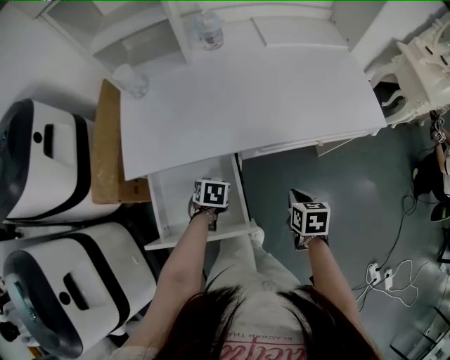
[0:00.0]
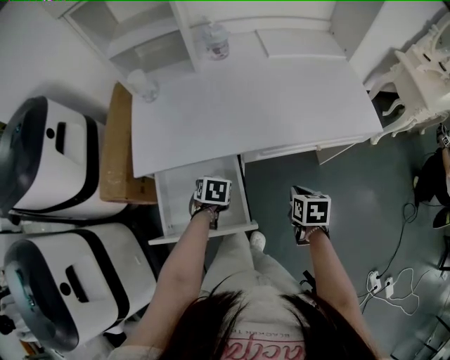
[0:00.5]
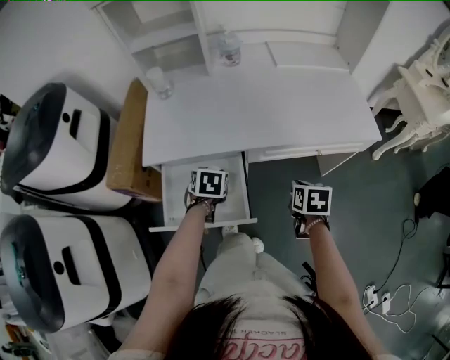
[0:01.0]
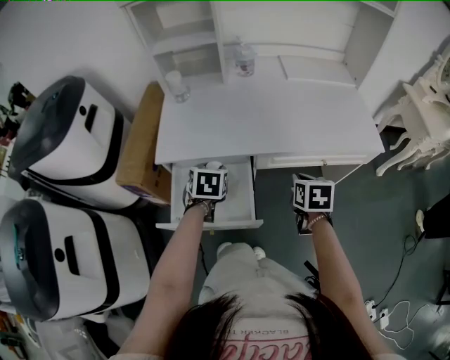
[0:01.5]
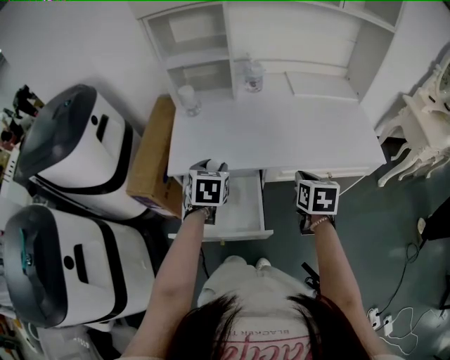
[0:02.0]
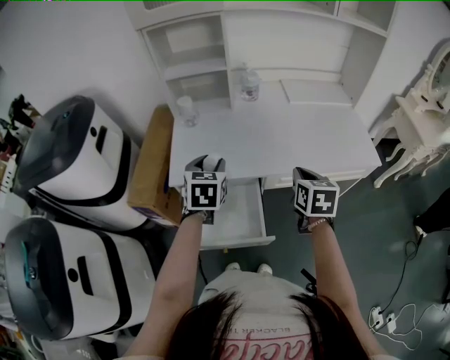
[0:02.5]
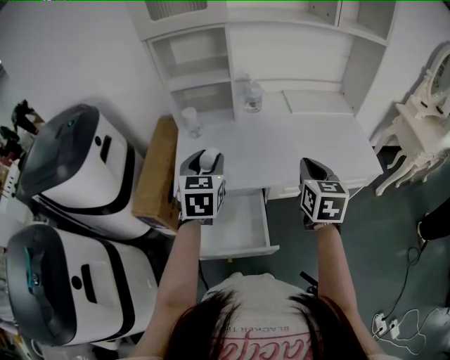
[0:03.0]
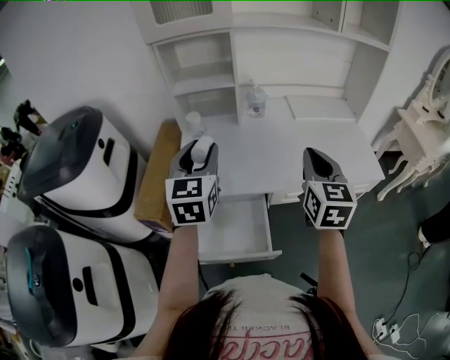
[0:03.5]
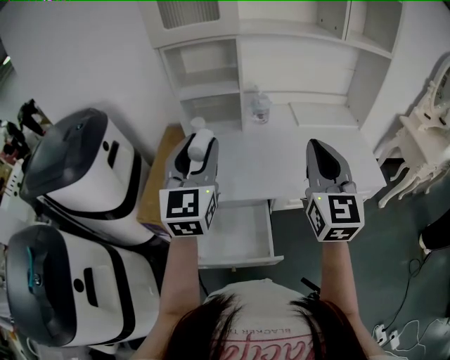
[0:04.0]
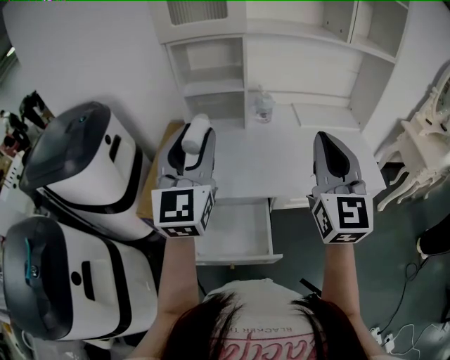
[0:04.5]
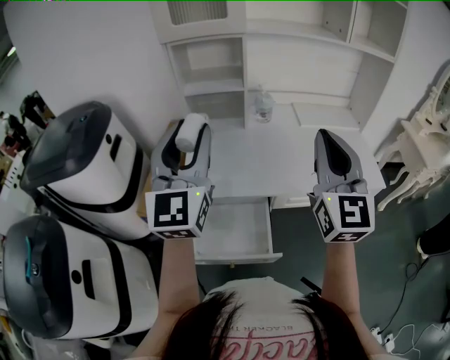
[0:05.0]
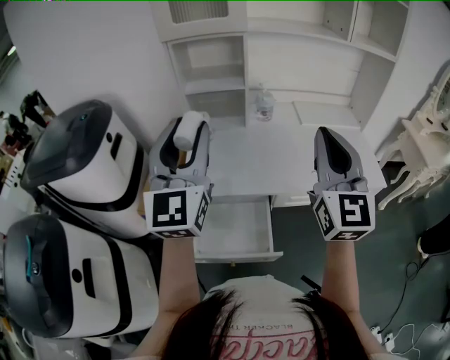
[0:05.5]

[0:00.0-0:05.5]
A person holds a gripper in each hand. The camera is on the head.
0:00.0 to 0:02.0: Both grippers travel together upward, approximately 20 cm. The left gripper tips its fingers upward by about 30 degrees.
0:02.0 to 0:03.5: The two grippers go roughly 20 cm upward. The right gripper angles its fingers upward, by about 30 degrees, while the left gripper tilts its fingers some 30 degrees upward.
0:03.5 to 0:05.5: The right gripper shifts roughly 10 cm upward, and changes its angle by about 30 degrees. Meanwhile the left gripper heads upward and backward, covering roughly 15 cm, and swivels some 30 degrees.

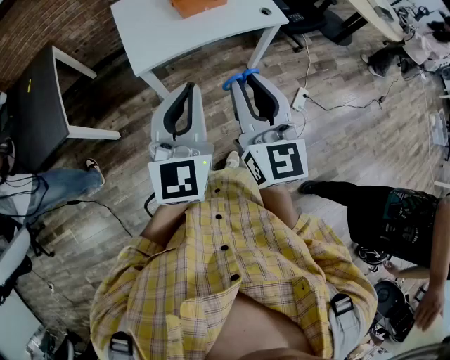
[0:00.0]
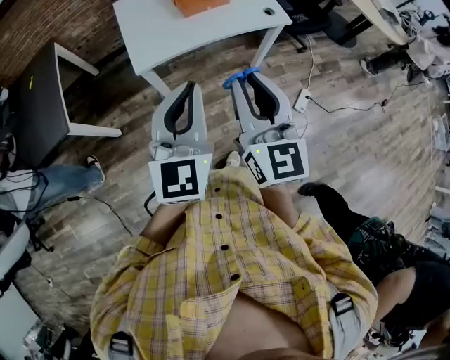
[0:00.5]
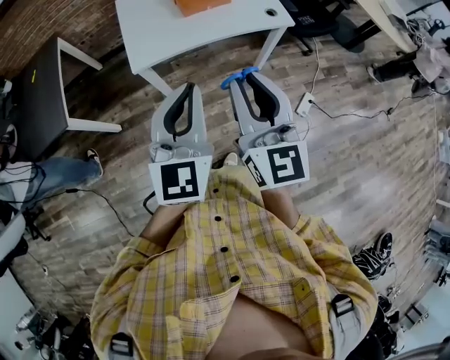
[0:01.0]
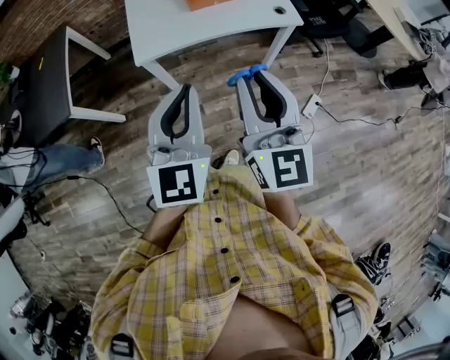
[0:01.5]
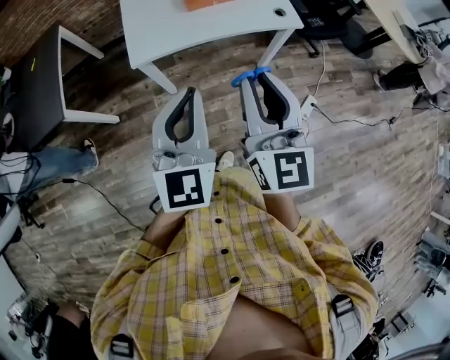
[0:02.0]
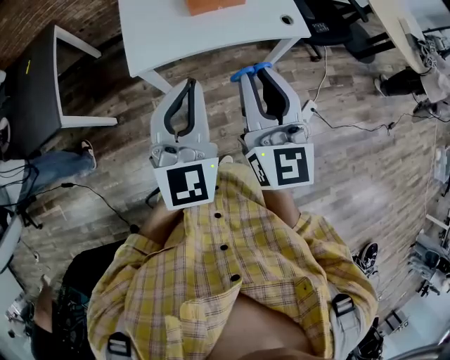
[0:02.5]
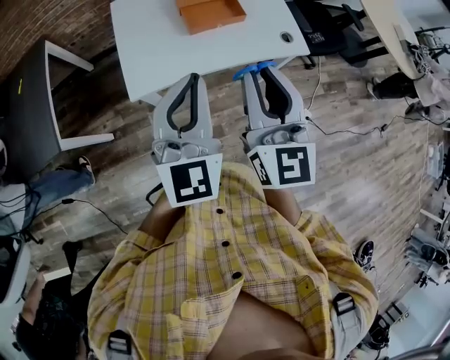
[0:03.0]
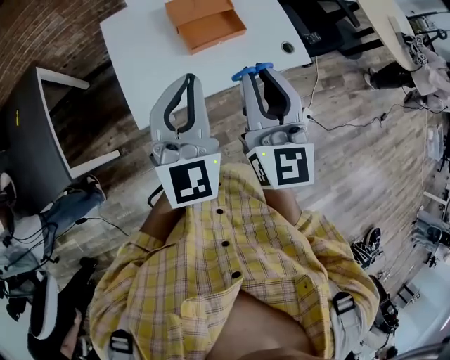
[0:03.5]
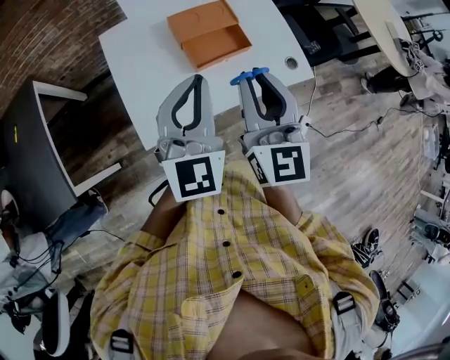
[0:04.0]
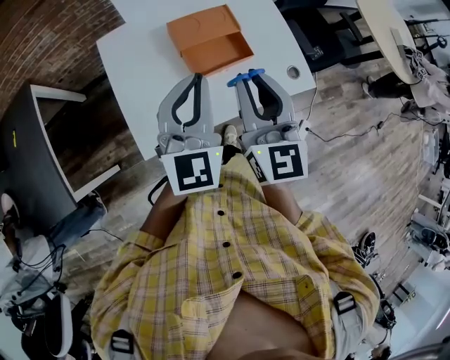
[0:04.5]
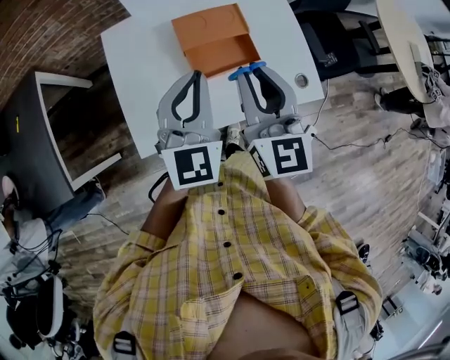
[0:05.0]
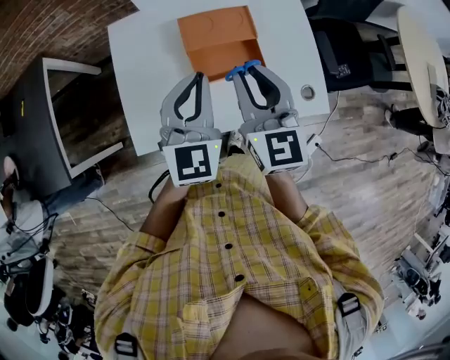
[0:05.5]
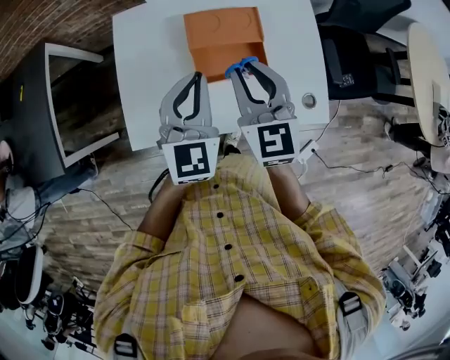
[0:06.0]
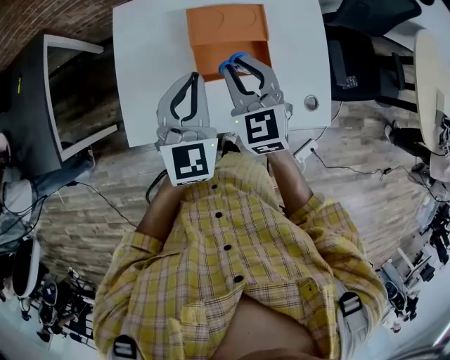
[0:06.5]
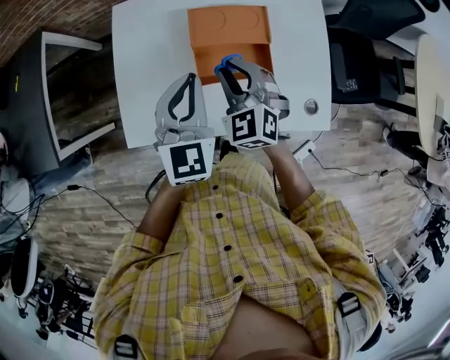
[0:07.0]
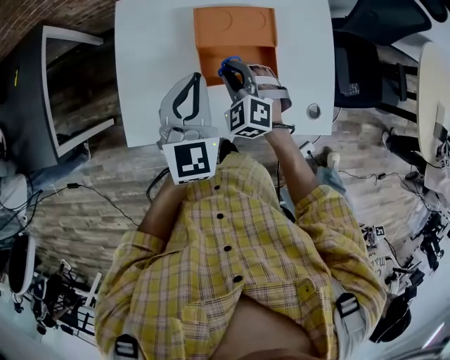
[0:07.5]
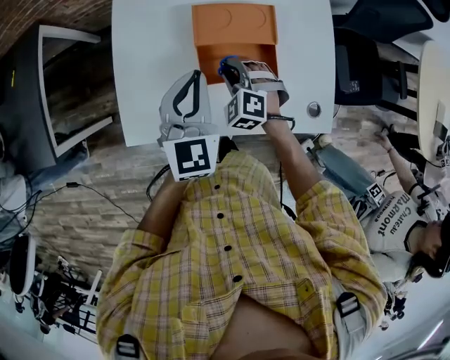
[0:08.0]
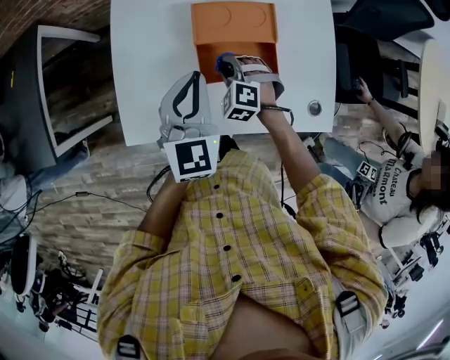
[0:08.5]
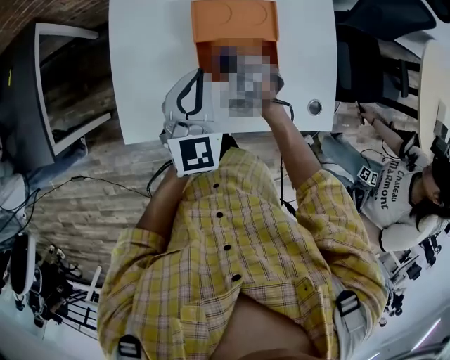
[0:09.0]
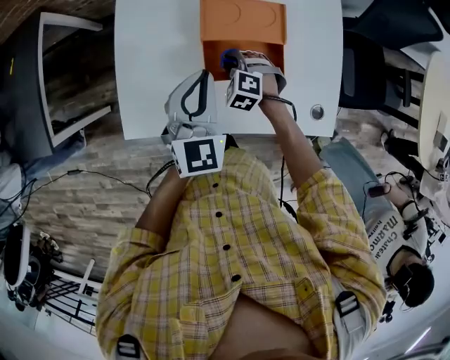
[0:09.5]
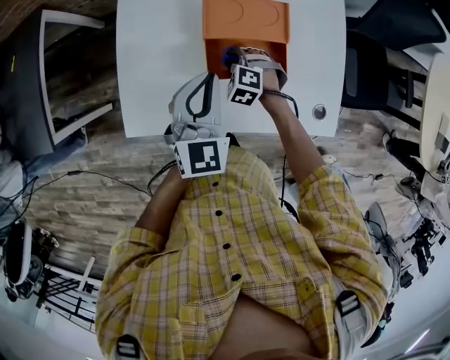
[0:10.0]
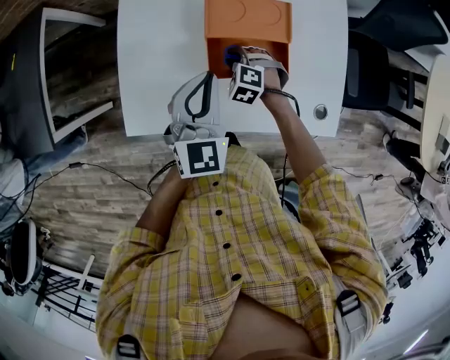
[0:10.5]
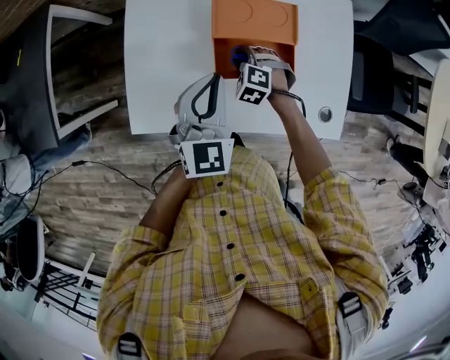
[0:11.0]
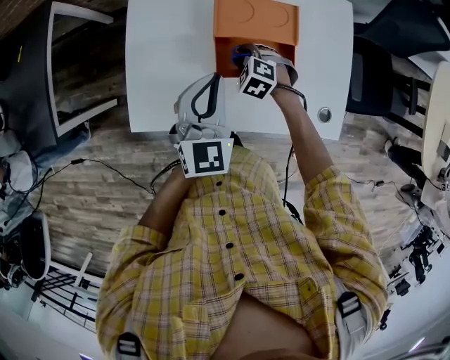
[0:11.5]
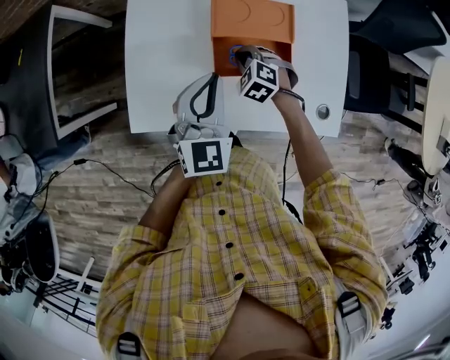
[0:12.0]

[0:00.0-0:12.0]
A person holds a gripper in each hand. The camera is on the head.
0:00.0 to 0:02.0: The two grippers go roughly 5 cm to the right.
0:02.0 to 0:04.0: The two grippers go approximately 35 cm forward.
0:04.0 to 0:06.0: The right gripper is displaced forward and downward by some 20 cm, and changes its angle by approximately 30 degrees; the left gripper heads forward, downward and to the right, covering some 20 cm.
0:06.0 to 0:08.0: The left gripper shifts about 5 cm downward. The right gripper is displaced downward by some 25 cm, and angles its fingers downward, by about 40 degrees.
0:08.0 to 0:10.0: The right gripper heads downward, covering roughly 10 cm.
0:10.0 to 0:12.0: There are only small adjustments of the grippers.

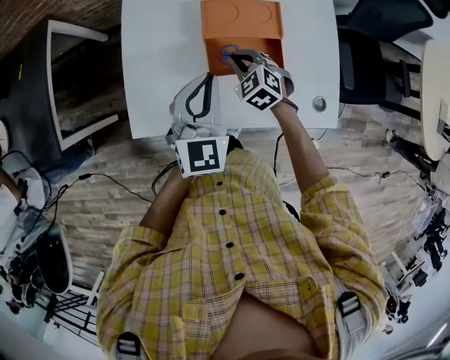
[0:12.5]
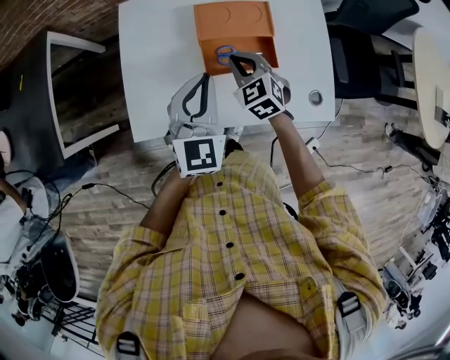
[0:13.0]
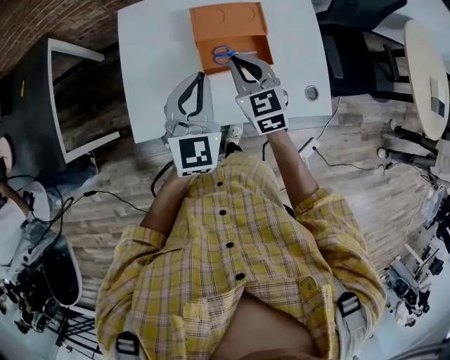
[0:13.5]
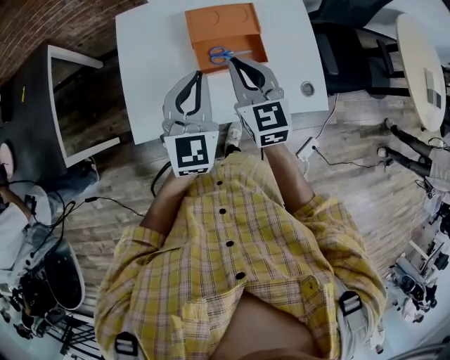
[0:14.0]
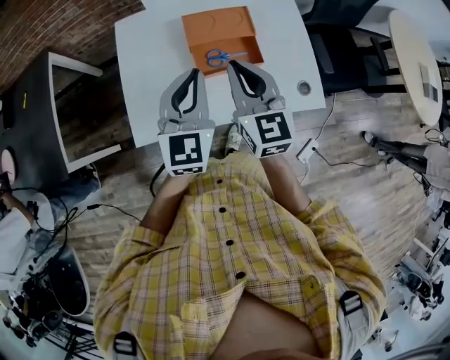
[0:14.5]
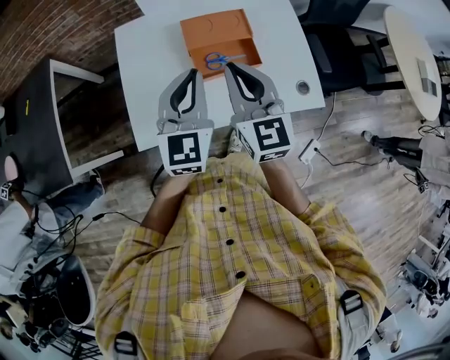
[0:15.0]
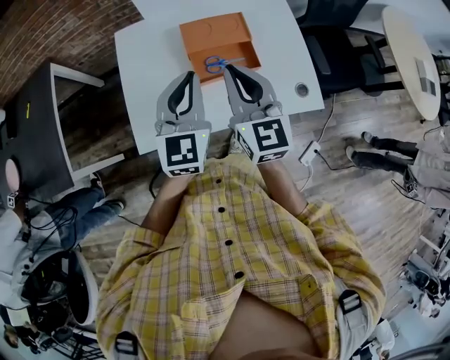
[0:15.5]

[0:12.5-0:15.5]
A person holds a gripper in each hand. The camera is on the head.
0:12.5 to 0:14.0: The left gripper changes place by approximately 5 cm, while the right gripper moves upward and backward, approximately 20 cm, and points its fingers some 30 degrees further upward.
0:14.0 to 0:15.5: The right gripper heads upward, covering roughly 5 cm.

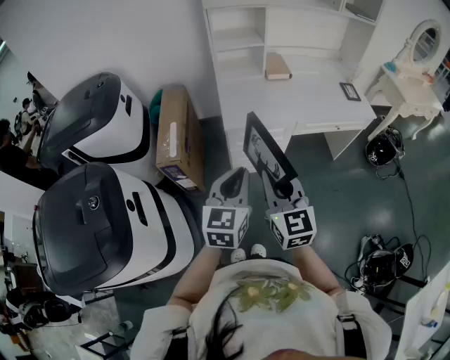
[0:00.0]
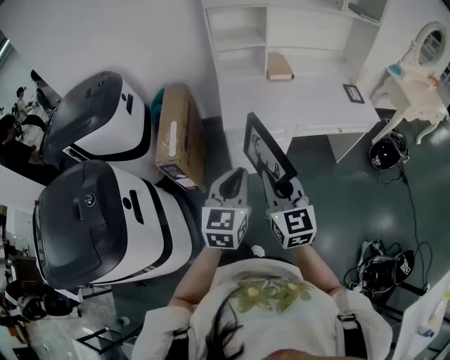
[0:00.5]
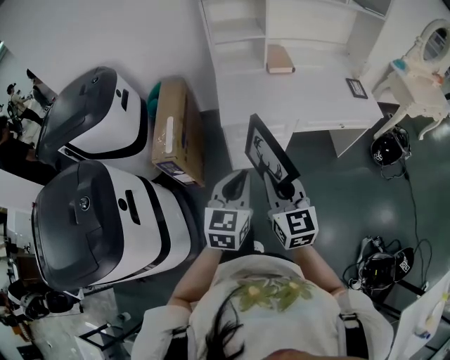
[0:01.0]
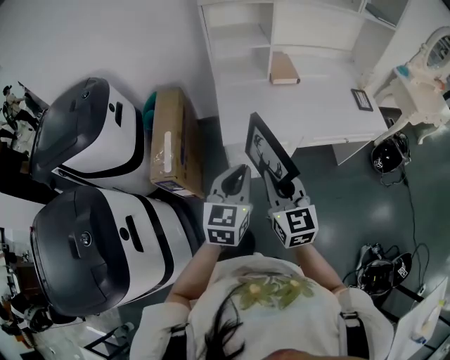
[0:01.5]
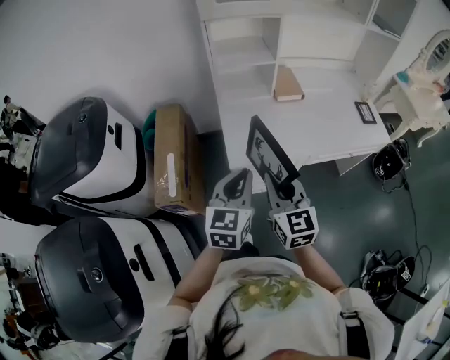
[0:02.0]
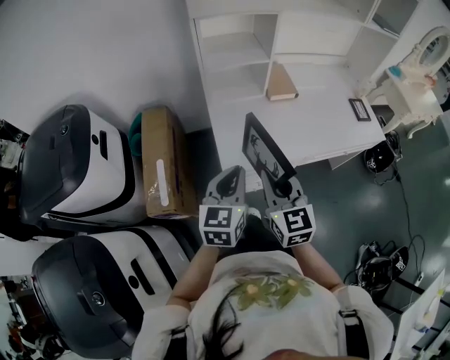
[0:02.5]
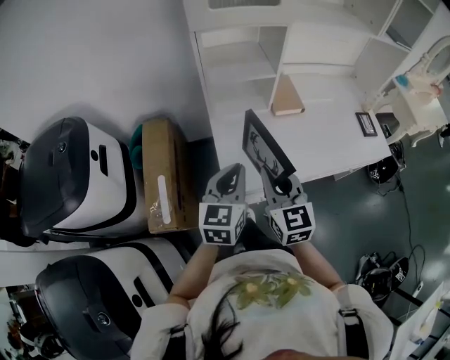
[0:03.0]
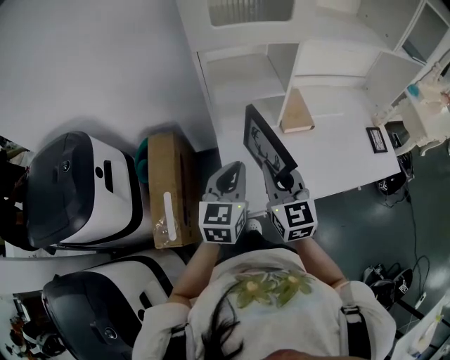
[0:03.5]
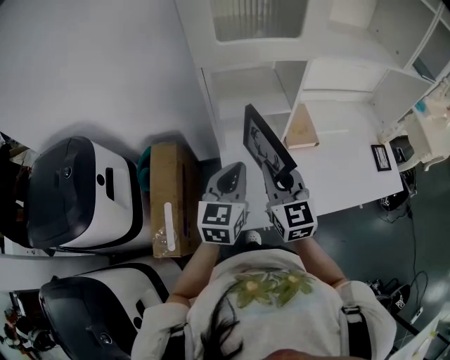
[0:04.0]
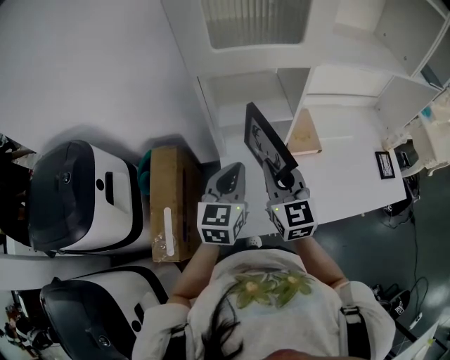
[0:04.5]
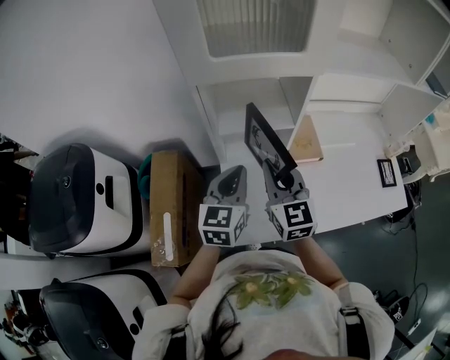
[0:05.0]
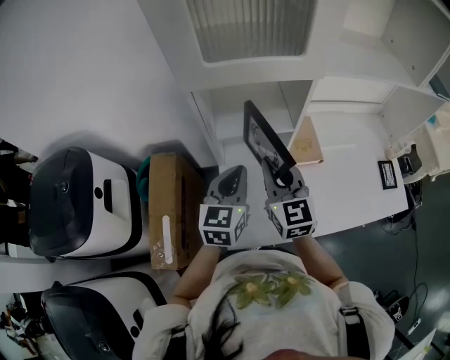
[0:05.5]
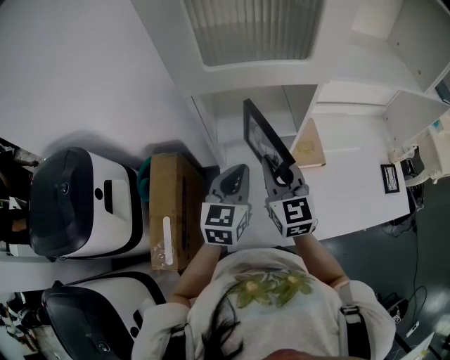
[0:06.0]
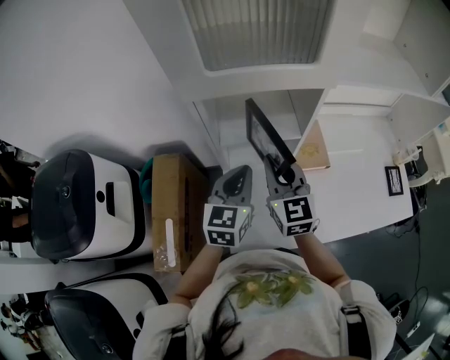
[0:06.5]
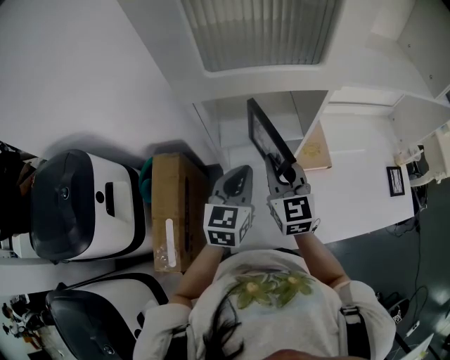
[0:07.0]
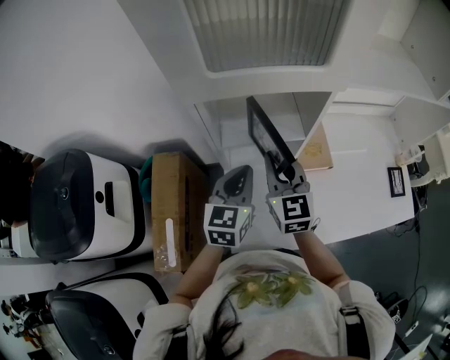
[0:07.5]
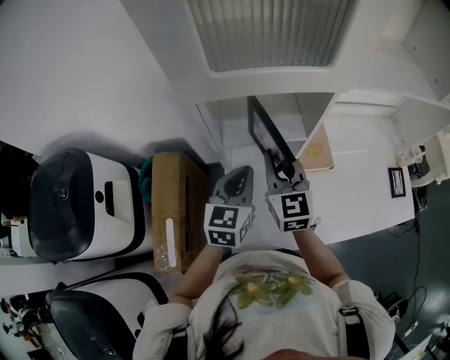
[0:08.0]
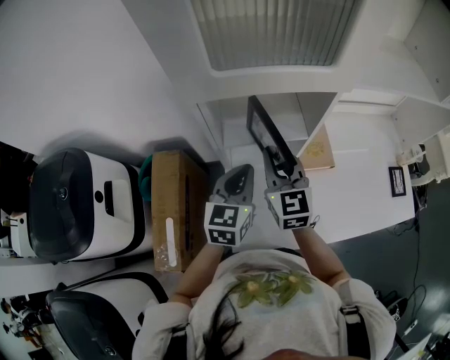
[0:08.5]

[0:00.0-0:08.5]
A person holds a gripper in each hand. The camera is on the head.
0:00.0 to 0:02.0: The two grippers go approximately 25 cm forward.
0:02.0 to 0:04.0: The grippers both shift forward by about 30 cm.
0:04.0 to 0:06.5: The two grippers go about 10 cm forward.
0:06.5 to 0:08.5: The grippers stay close to where they were, moving slightly.
